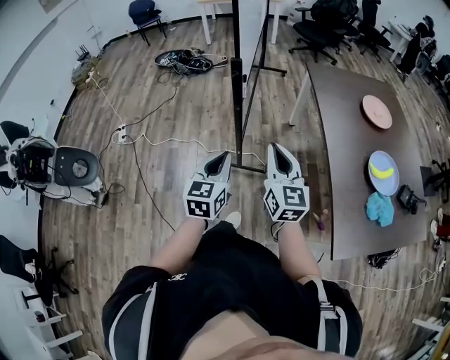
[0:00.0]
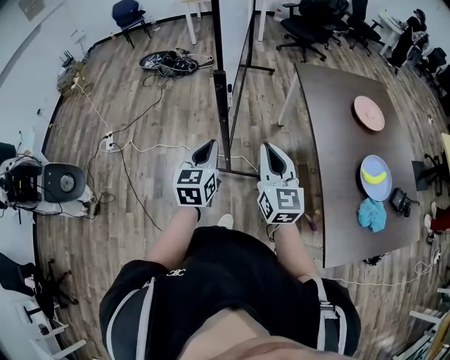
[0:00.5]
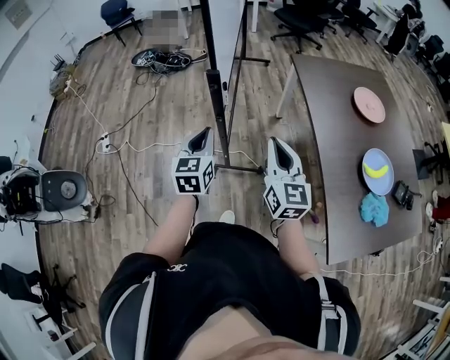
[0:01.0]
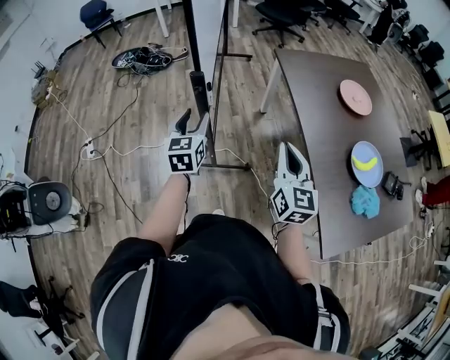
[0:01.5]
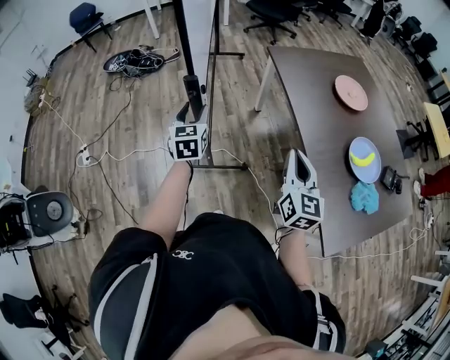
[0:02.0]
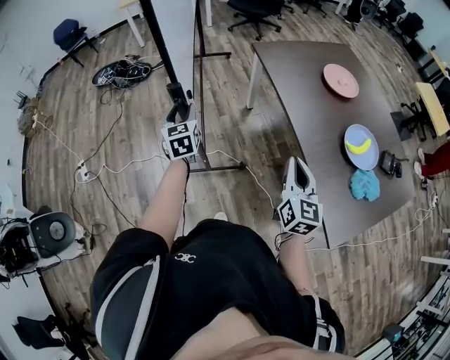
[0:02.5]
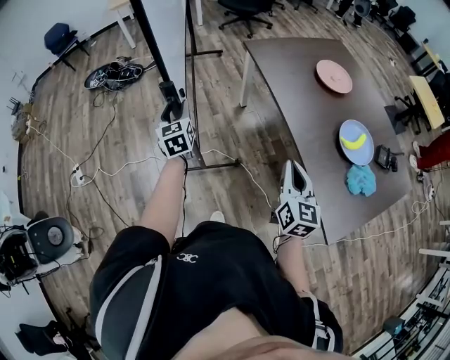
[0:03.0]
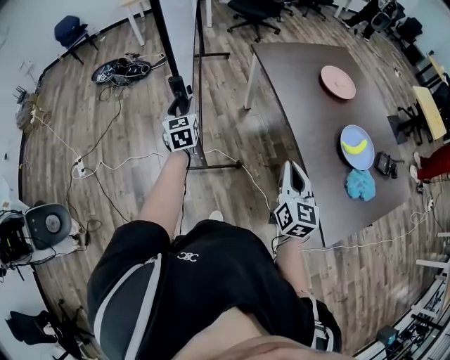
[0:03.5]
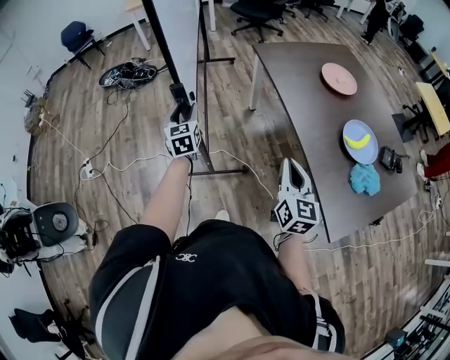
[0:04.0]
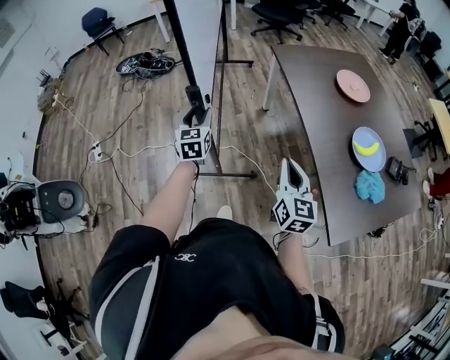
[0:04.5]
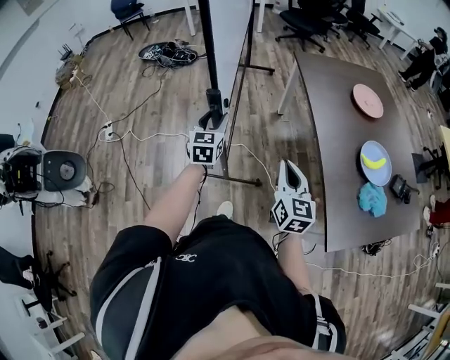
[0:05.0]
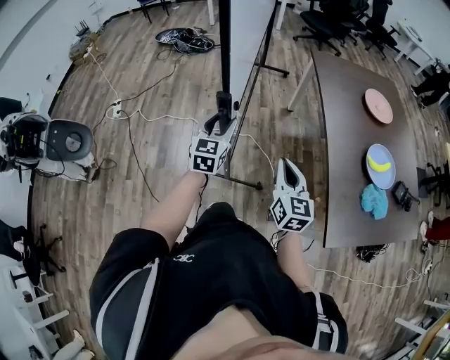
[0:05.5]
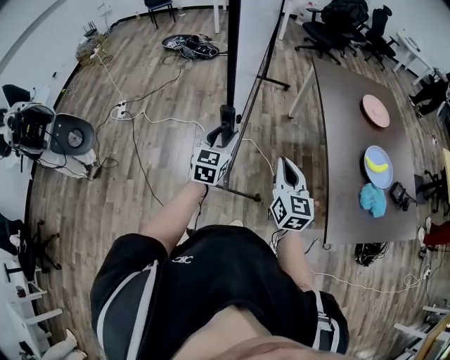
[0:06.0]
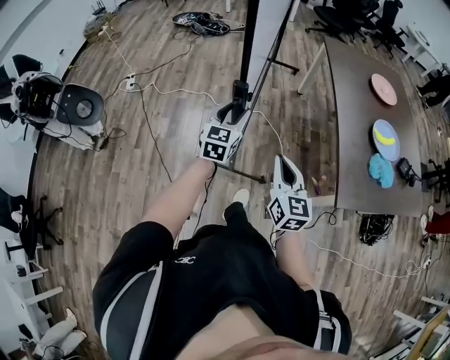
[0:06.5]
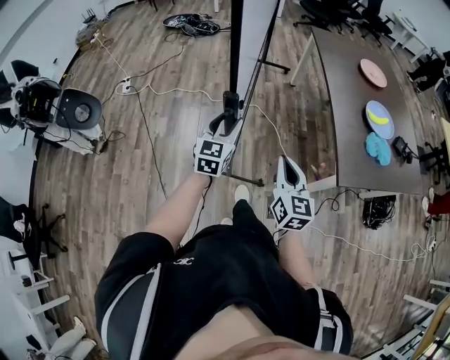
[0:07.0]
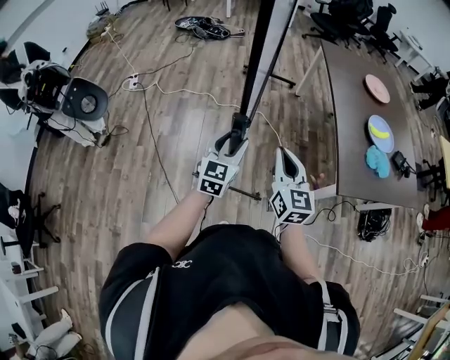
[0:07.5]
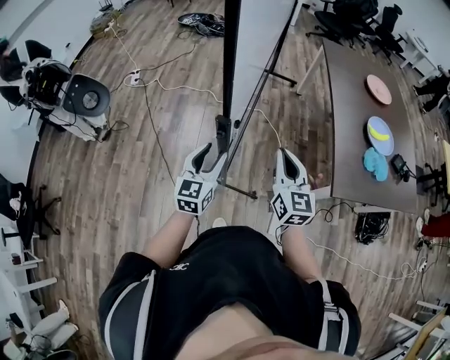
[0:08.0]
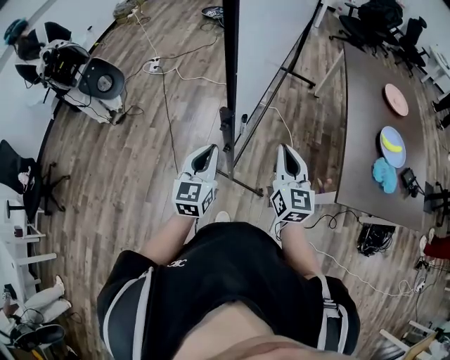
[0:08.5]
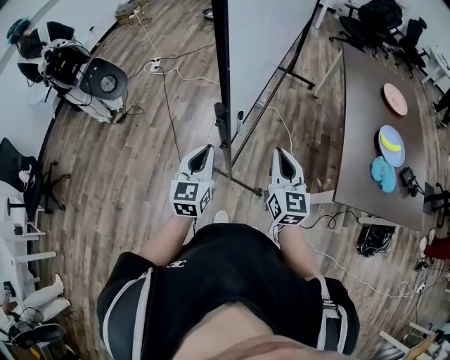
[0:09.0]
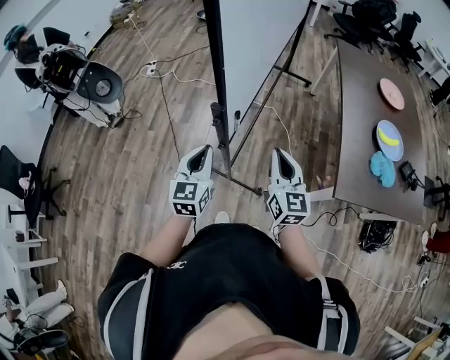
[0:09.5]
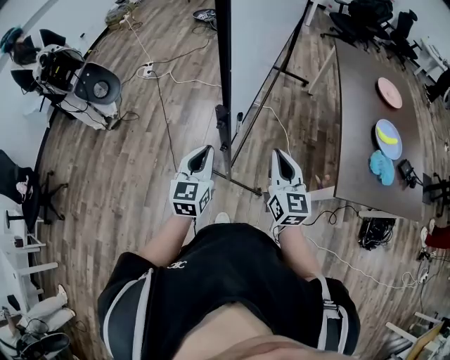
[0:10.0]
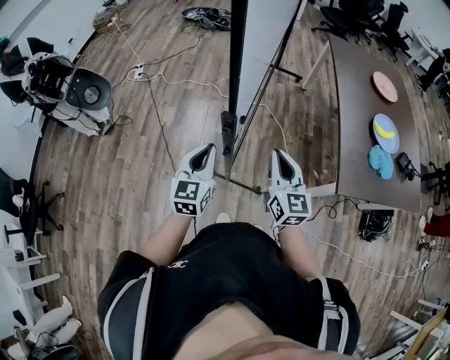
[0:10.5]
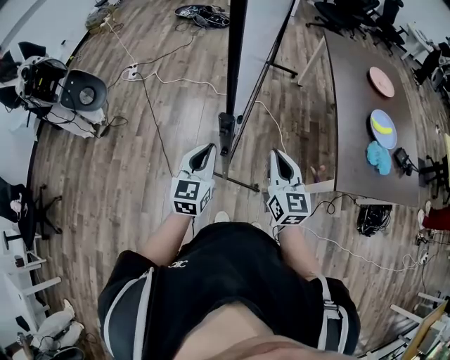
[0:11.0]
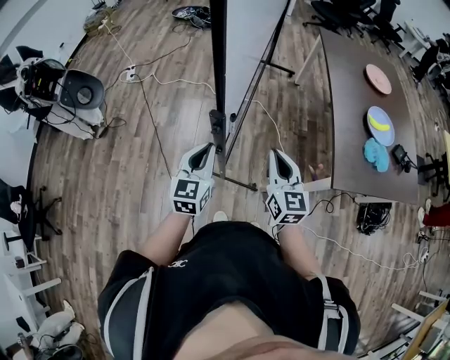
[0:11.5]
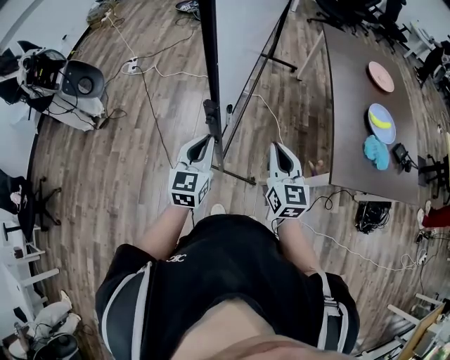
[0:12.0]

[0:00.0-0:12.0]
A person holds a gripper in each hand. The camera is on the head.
0:00.0 to 0:02.0: The left gripper moves forward, roughly 30 cm, and opens its fingers. Meanwhile the right gripper shifts roughly 15 cm to the right and forward, and changes its angle by some 20 degrees.
0:02.0 to 0:04.0: The right gripper goes about 5 cm backward.
0:04.0 to 0:06.0: The right gripper shifts roughly 15 cm backward and to the left, and turns by approximately 20 degrees. Meanwhile the left gripper heads backward, covering about 30 cm.
0:06.0 to 0:08.0: The left gripper shifts about 30 cm backward. The right gripper is displaced backward by about 20 cm.
0:08.0 to 0:10.0: The left gripper closes.
0:10.0 to 0:12.0: There are only small adjustments of the grippers.

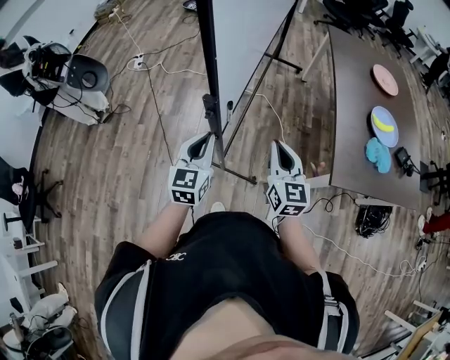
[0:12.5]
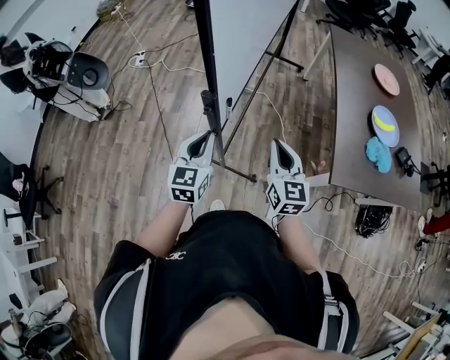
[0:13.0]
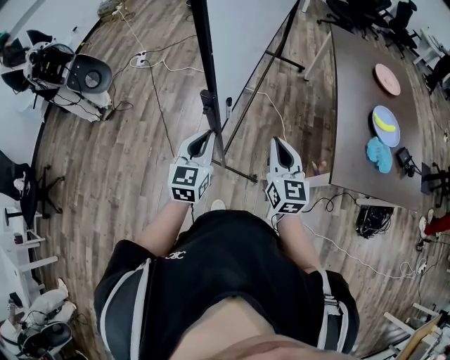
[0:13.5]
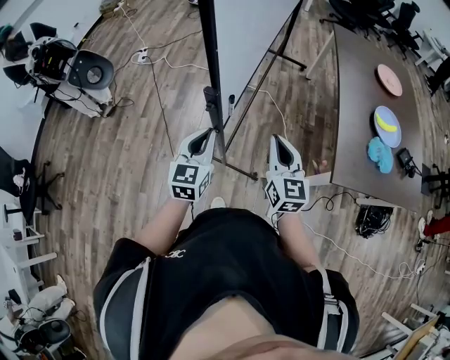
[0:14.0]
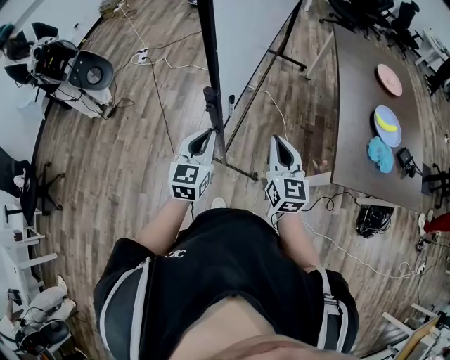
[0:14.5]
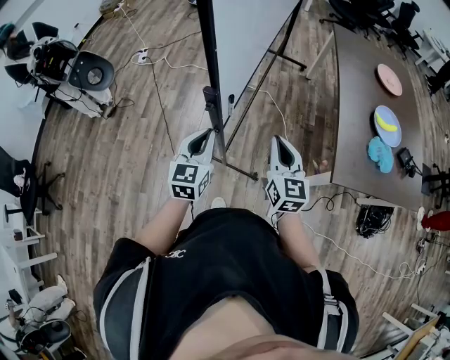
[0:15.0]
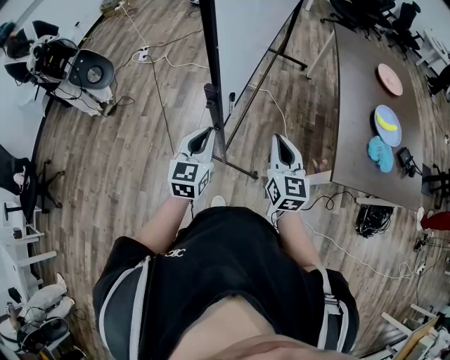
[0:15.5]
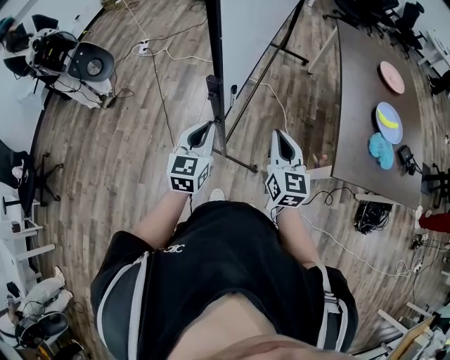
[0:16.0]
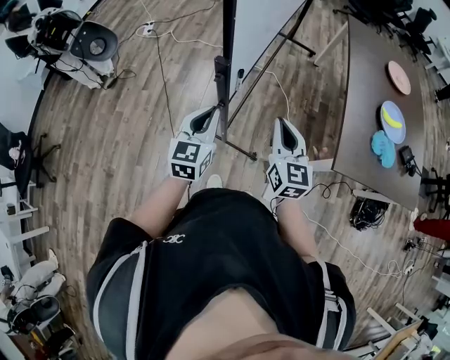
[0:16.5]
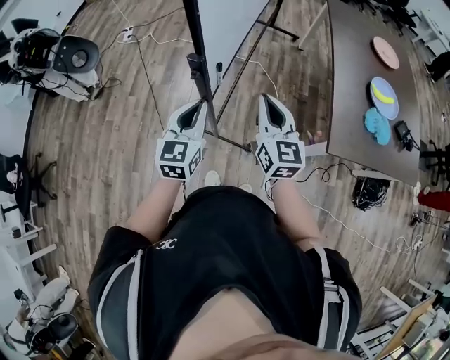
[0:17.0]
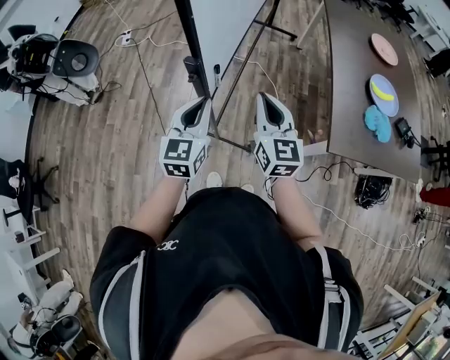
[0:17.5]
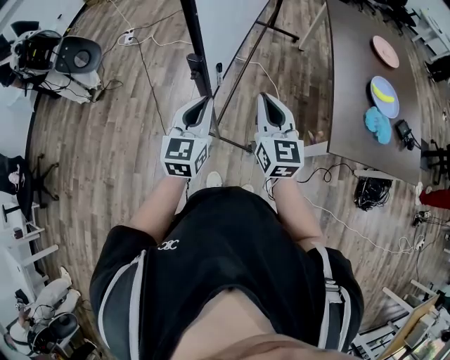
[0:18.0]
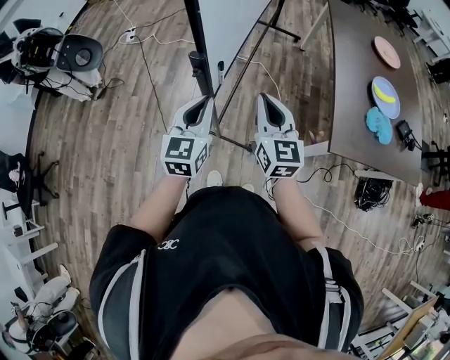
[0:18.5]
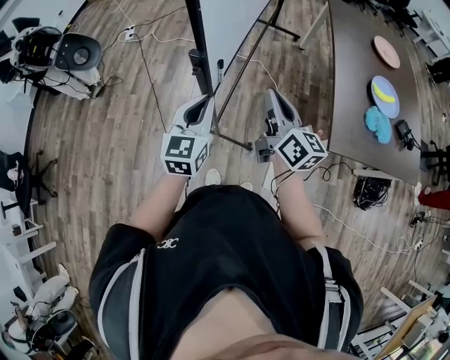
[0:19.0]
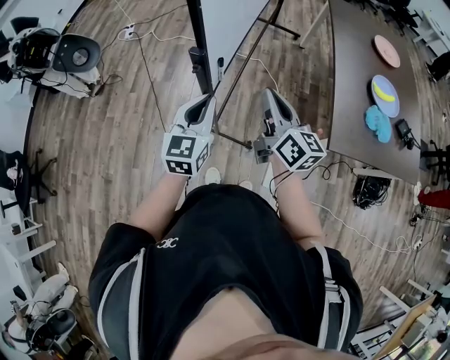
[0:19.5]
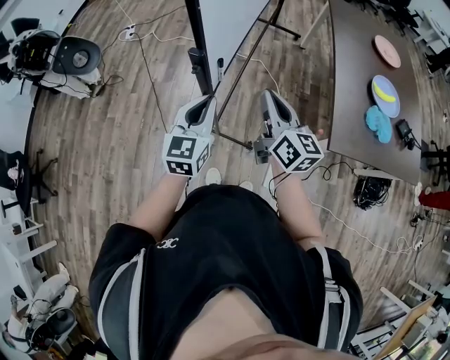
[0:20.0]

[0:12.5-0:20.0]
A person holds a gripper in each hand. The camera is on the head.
0:12.5 to 0:14.5: The two grippers keep their place.
0:14.5 to 0:18.0: The grippers make only small movements.
0:18.0 to 0:20.0: The right gripper changes its angle by about 20 degrees.

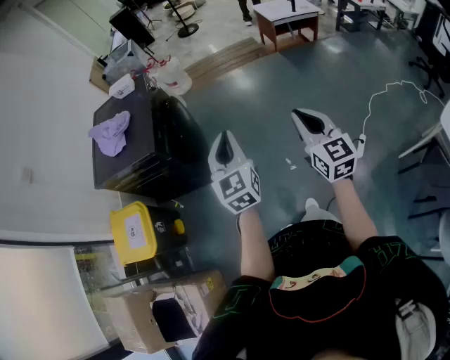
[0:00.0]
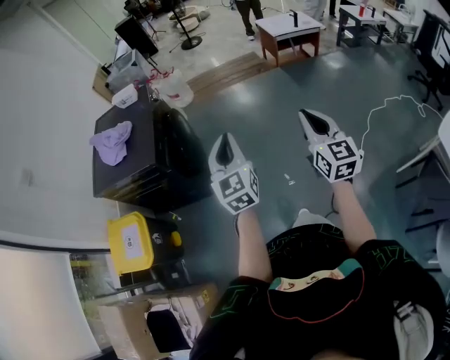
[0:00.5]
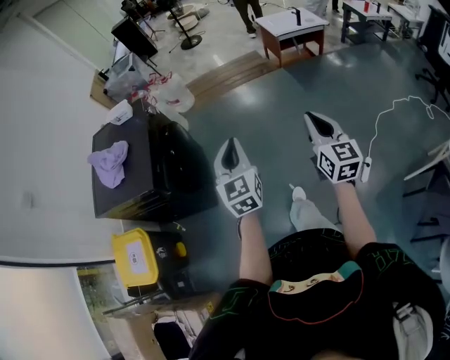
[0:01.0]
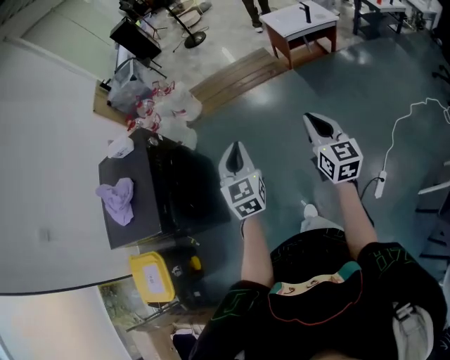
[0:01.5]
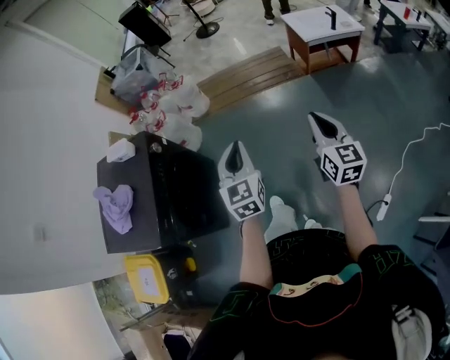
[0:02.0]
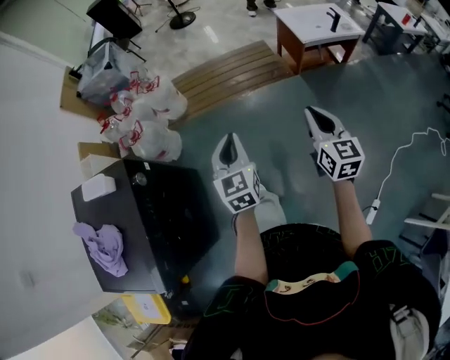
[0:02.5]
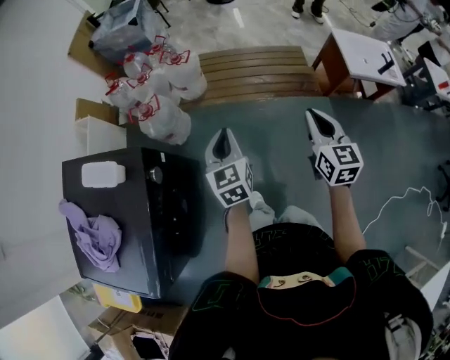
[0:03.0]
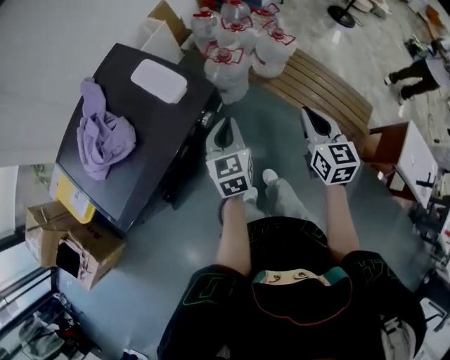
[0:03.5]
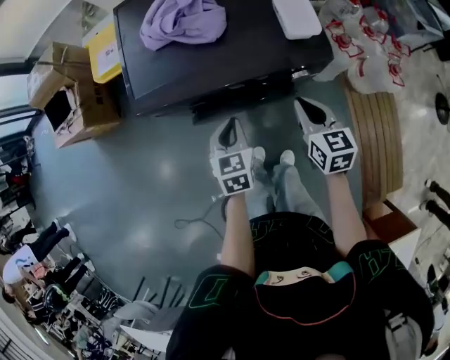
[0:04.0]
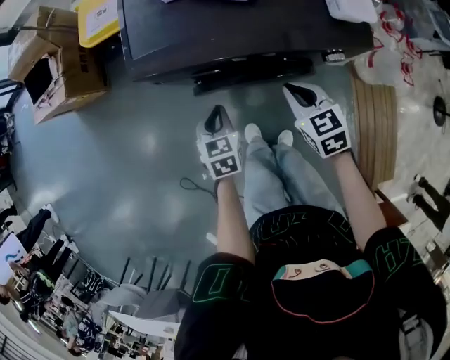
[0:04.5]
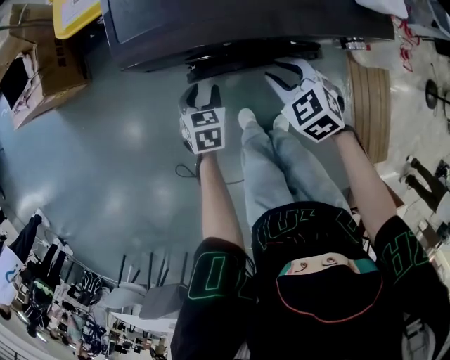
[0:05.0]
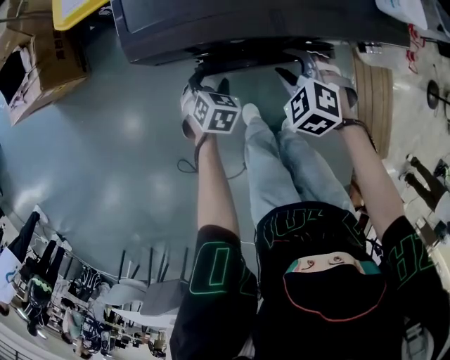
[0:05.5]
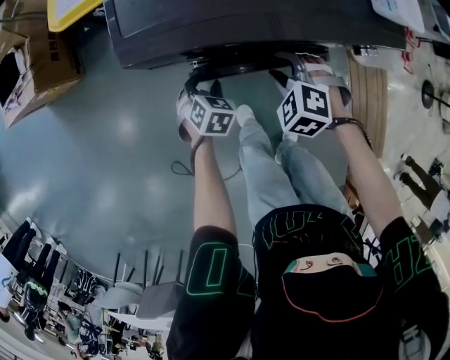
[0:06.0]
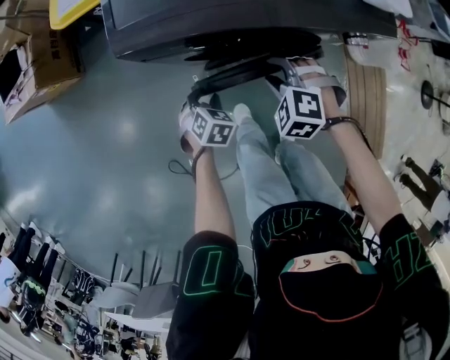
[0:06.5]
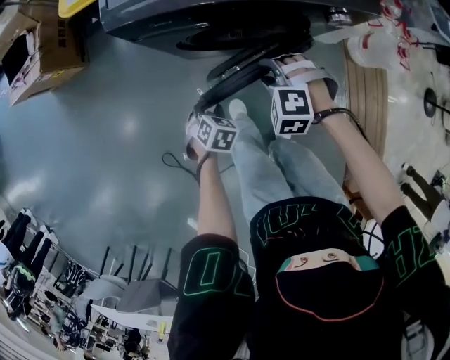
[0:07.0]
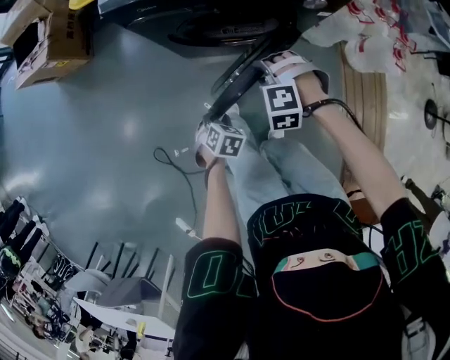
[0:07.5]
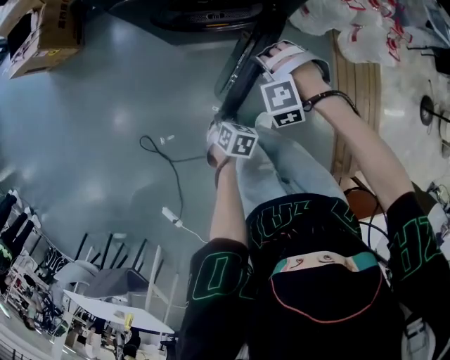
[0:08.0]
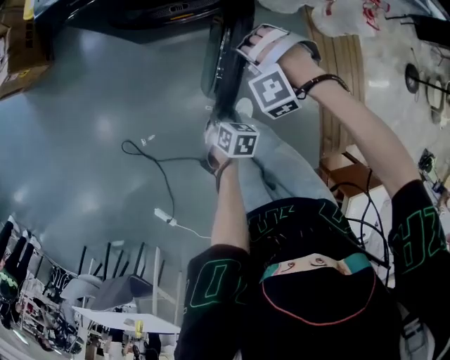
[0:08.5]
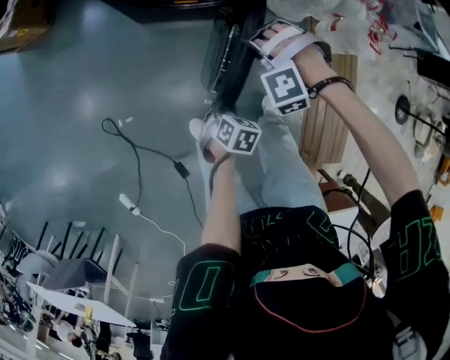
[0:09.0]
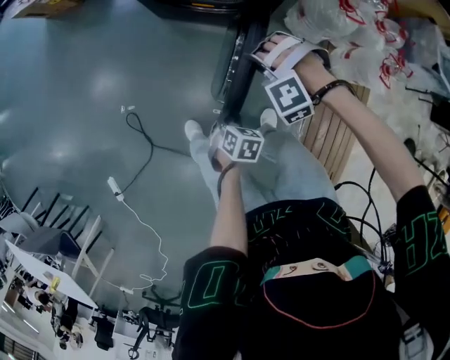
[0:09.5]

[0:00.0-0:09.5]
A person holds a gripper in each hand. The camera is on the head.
0:00.0 to 0:02.0: The two grippers travel together, forward, some 50 cm.
0:02.0 to 0:04.0: The pair of grippers is taken approximately 50 cm. The left gripper swivels some 90 degrees. The right gripper rotates about 100 degrees.
0:04.0 to 0:05.5: The left gripper is displaced downward and to the left by roughly 25 cm, rotates some 30 degrees, and opens its fingers. Meanwhile the right gripper heads to the left and downward, covering about 25 cm, rotates around the line of its fingers by some 60 degrees, counterclockwise from behind, and opens up.
0:05.5 to 0:07.5: The right gripper goes some 20 cm backward and to the right, and rotates roughly 40 degrees. The left gripper moves backward and to the right, about 30 cm, and closes its fingers.
0:07.5 to 0:09.5: The left gripper moves approximately 30 cm, and swivels approximately 20 degrees. The right gripper moves approximately 20 cm, and changes its angle by some 40 degrees.
